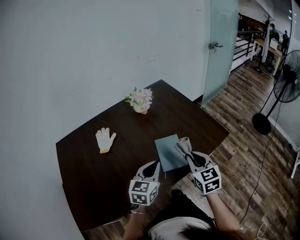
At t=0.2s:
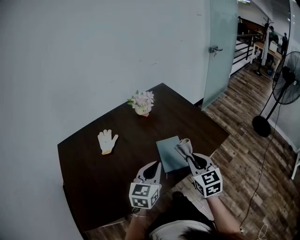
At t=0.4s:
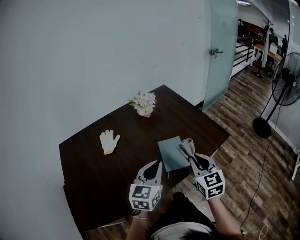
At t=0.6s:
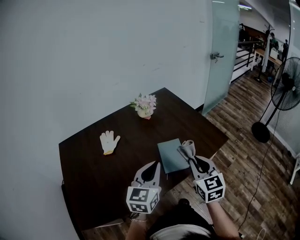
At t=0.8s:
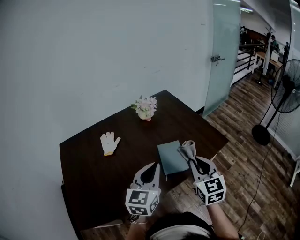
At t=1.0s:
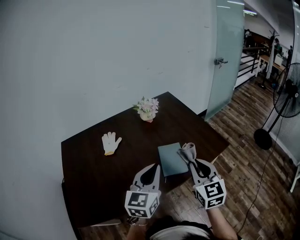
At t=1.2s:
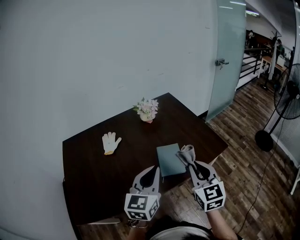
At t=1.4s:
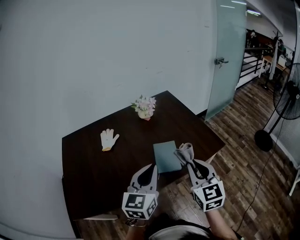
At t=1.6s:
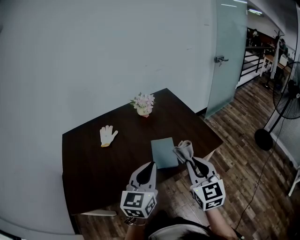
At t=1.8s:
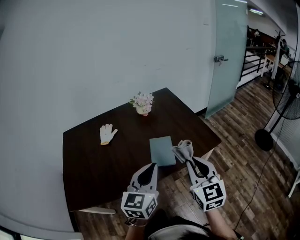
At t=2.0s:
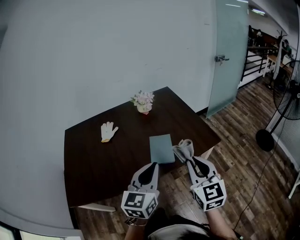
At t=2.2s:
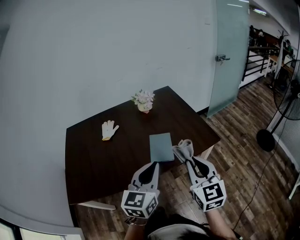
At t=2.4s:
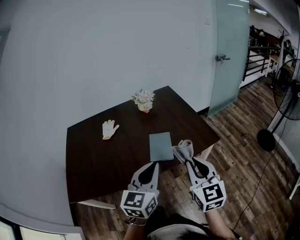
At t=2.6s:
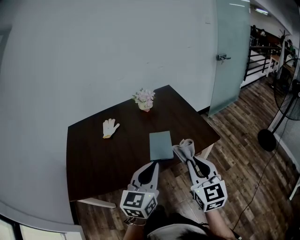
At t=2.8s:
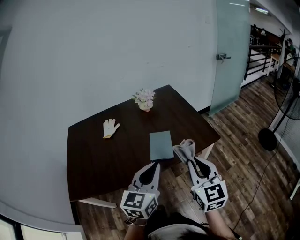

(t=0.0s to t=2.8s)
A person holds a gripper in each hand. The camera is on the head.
t=0.0s - t=1.4s: The two grippers go about 15 cm upward and backward.
t=1.4s - t=2.8s: Both grippers travel together backward and to the right, about 15 cm.

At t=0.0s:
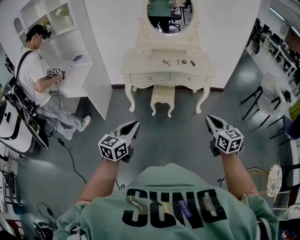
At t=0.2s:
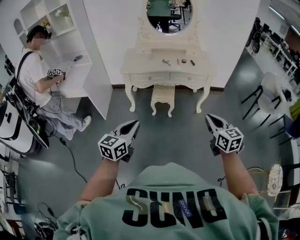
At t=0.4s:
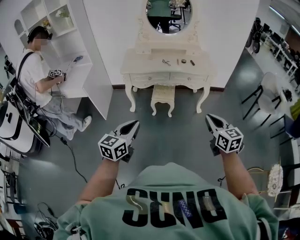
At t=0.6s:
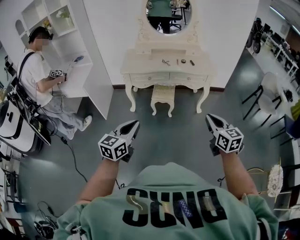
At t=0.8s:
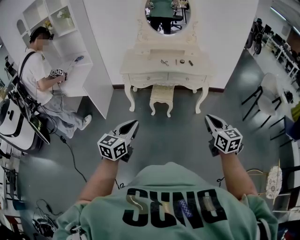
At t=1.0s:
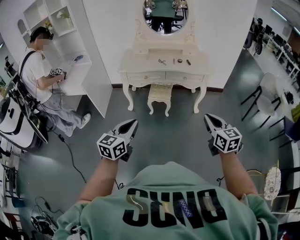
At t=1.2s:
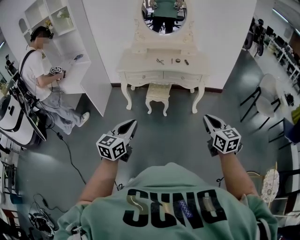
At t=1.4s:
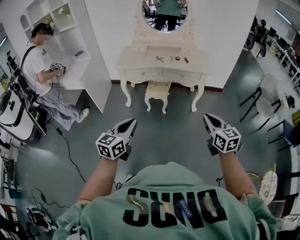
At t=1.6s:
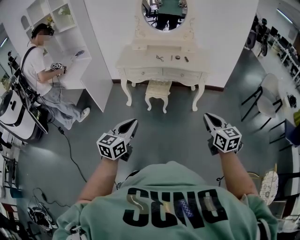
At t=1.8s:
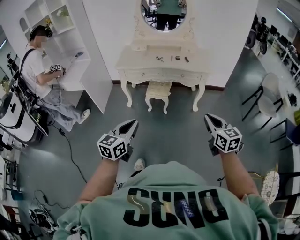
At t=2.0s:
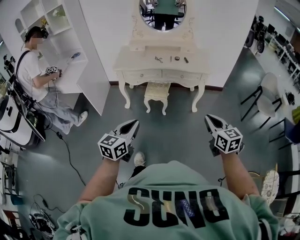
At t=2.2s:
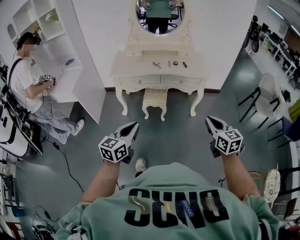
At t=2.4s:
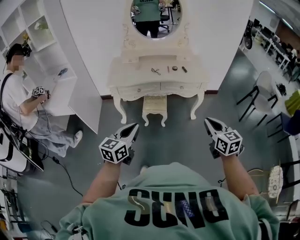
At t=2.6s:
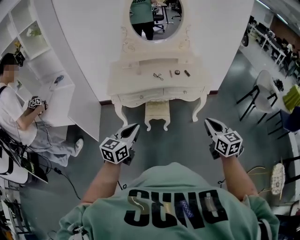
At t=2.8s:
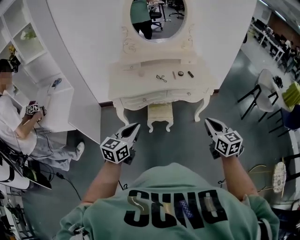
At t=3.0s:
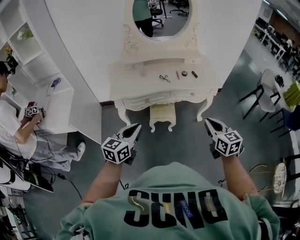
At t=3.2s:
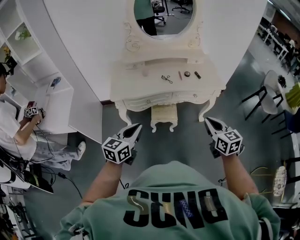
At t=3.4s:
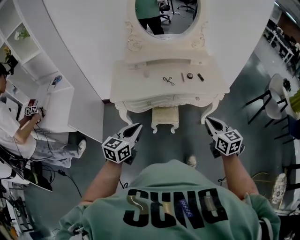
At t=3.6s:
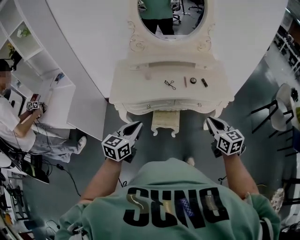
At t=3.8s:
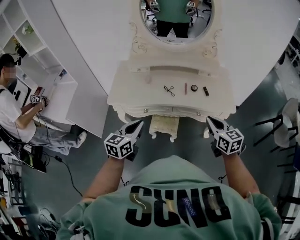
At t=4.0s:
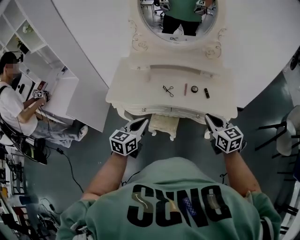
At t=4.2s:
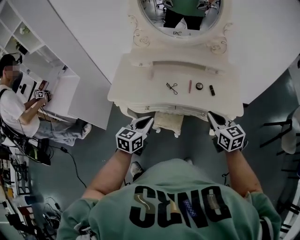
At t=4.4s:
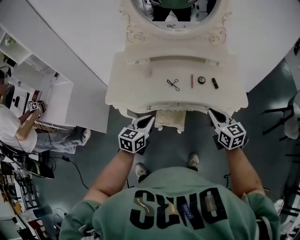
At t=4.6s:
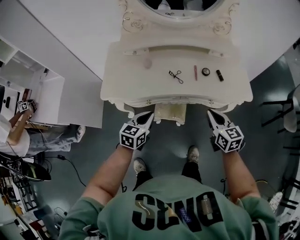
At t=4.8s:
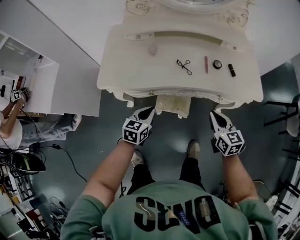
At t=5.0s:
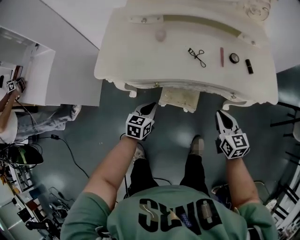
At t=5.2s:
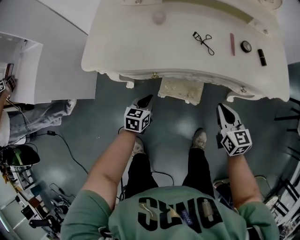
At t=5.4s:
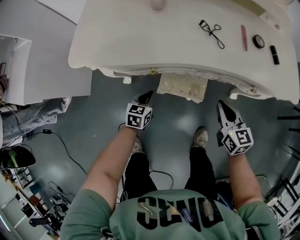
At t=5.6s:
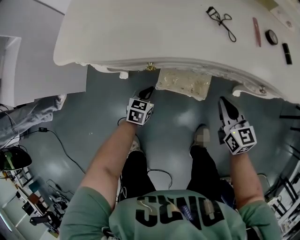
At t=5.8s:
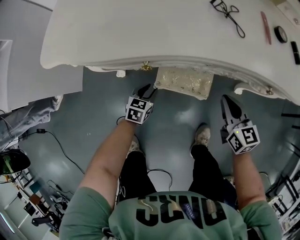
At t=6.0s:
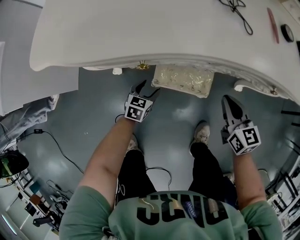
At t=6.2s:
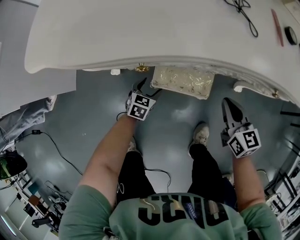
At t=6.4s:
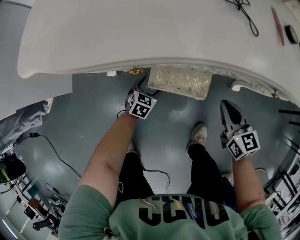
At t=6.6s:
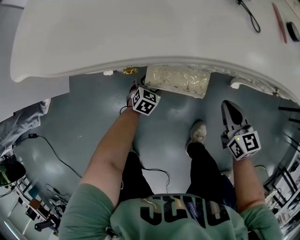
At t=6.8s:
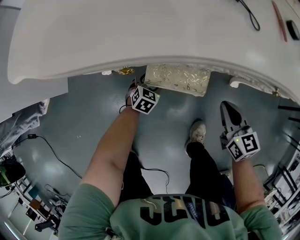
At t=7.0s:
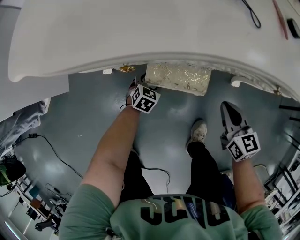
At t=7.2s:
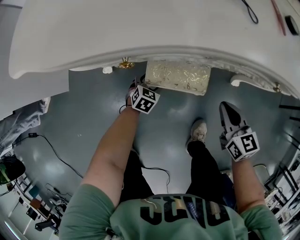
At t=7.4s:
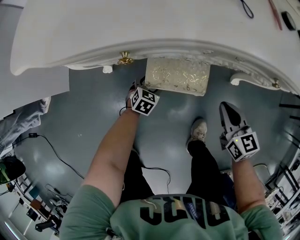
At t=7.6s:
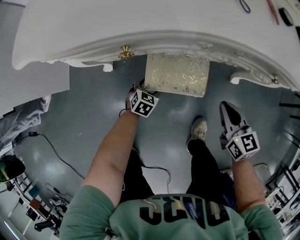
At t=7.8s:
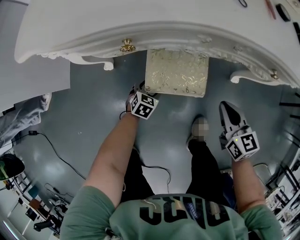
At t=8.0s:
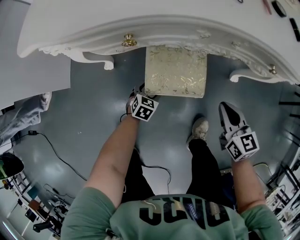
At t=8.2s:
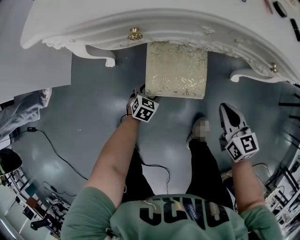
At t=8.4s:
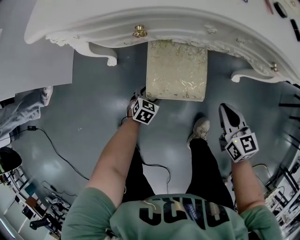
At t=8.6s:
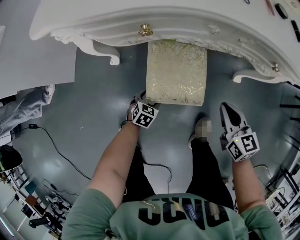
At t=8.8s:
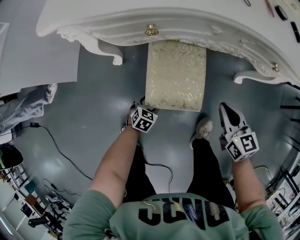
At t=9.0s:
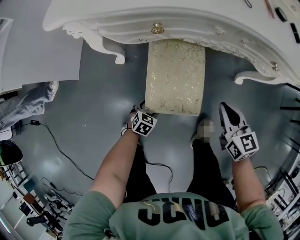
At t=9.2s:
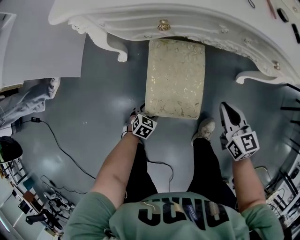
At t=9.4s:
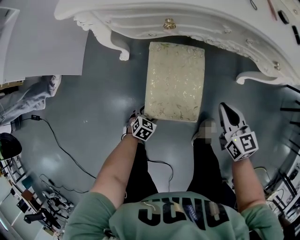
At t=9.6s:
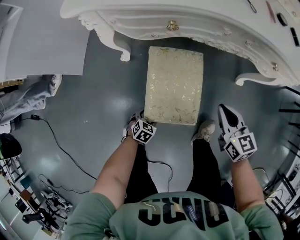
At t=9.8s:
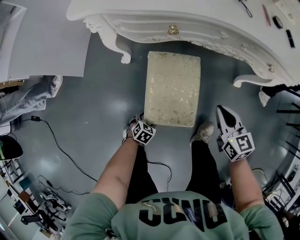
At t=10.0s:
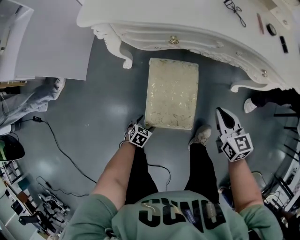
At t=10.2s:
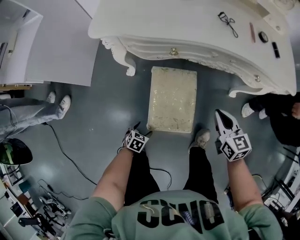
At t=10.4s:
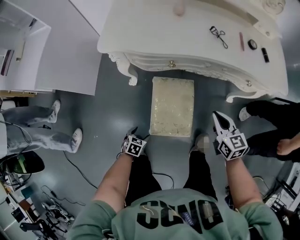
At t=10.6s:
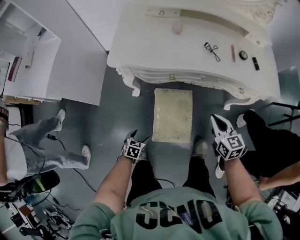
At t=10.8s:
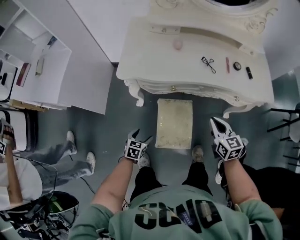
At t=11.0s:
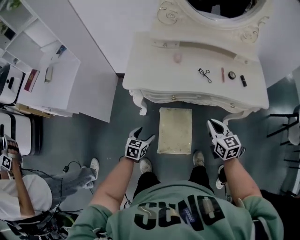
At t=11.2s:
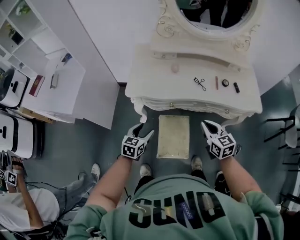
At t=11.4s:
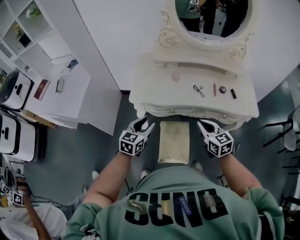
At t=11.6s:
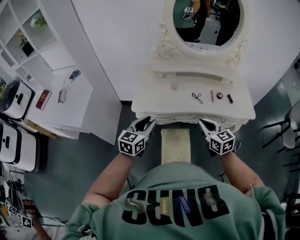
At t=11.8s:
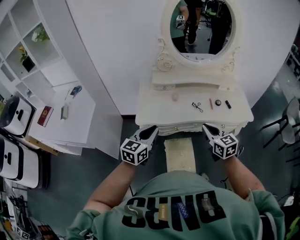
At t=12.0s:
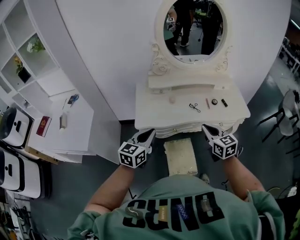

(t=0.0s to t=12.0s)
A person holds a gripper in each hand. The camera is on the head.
t=0.0s - t=1.6s: The grippers both shift to the right by about 15 cm.
t=1.6s - t=3.0s: The grippers both shift forward and to the left by about 40 cm.
t=3.0s - t=4.4s: The right gripper heads forward, covering approximately 30 cm, while the left gripper moves forward, downward and to the right, approximately 30 cm.
t=4.4s - t=6.0s: Both grippers travel together downward, about 50 cm. The left gripper swivels roughly 20 degrees, and opens up.
t=6.0s - t=7.6s: The left gripper heads downward, covering about 5 cm, while the right gripper moves backward, roughly 5 cm.
t=7.6s - t=9.0s: The left gripper travels backward by roughly 20 cm. Meanwhile the right gripper moves backward, about 5 cm.
t=9.0s - t=10.4s: The right gripper goes some 10 cm upward; the left gripper travels upward, backward and to the left by approximately 20 cm.
t=10.4s - t=12.0s: The right gripper shifts about 35 cm upward; the left gripper shifts about 70 cm upward, tilts its fingers approximately 50 degrees upward, and closes up.

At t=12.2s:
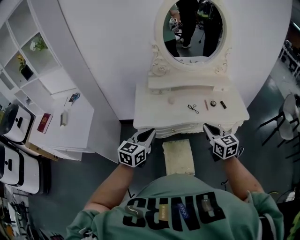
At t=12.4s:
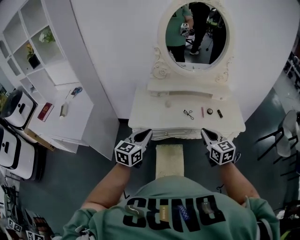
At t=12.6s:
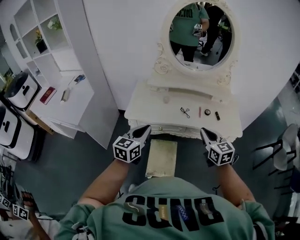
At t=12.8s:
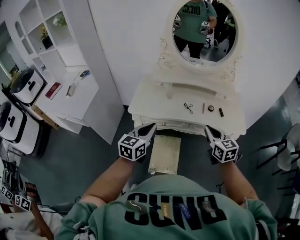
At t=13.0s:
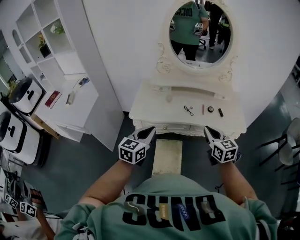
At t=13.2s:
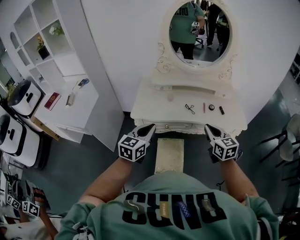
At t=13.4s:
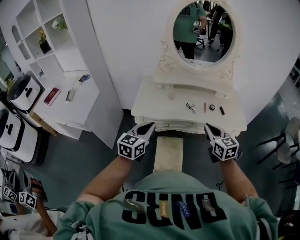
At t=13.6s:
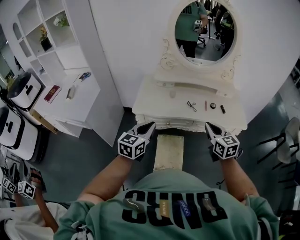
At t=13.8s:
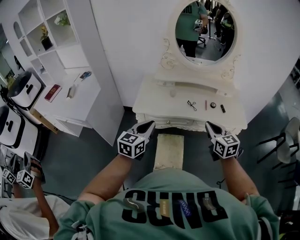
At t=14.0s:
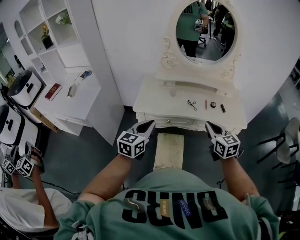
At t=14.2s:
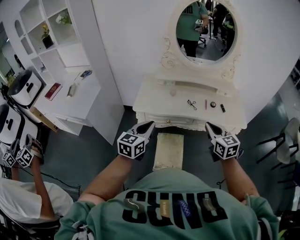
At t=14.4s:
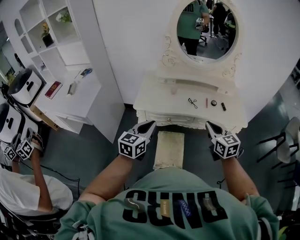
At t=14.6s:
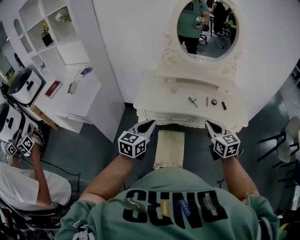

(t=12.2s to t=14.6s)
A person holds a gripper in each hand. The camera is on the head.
t=12.2s - t=13.4s: Both grippers travel together to the right, roughly 5 cm.
t=13.4s - t=14.6s: The grippers stay close to where they were, moving slightly.

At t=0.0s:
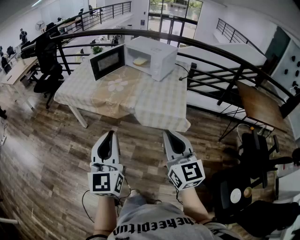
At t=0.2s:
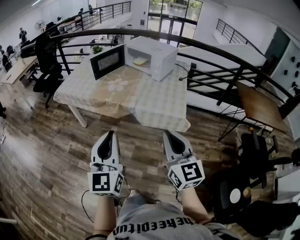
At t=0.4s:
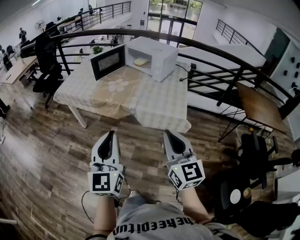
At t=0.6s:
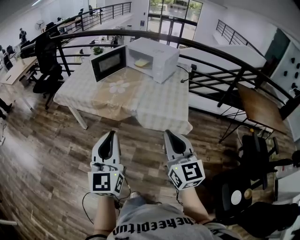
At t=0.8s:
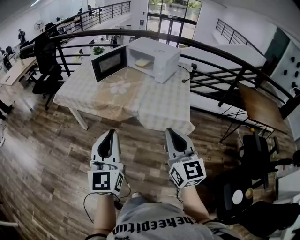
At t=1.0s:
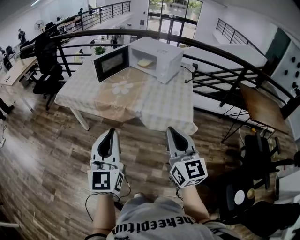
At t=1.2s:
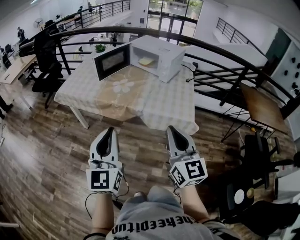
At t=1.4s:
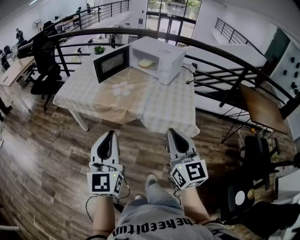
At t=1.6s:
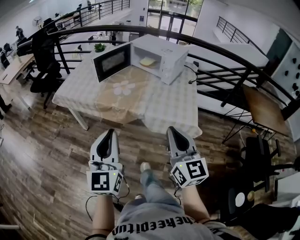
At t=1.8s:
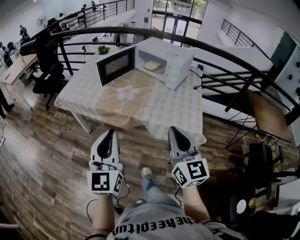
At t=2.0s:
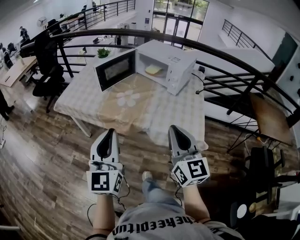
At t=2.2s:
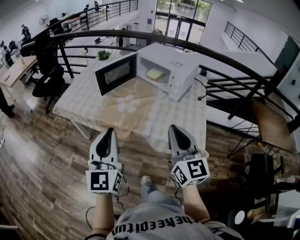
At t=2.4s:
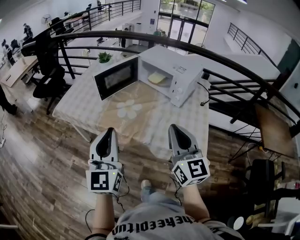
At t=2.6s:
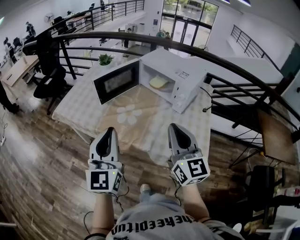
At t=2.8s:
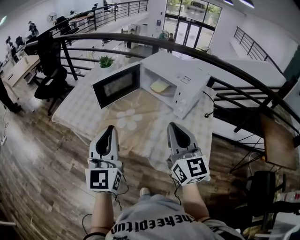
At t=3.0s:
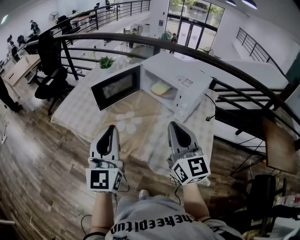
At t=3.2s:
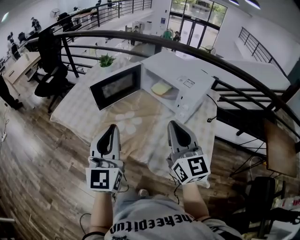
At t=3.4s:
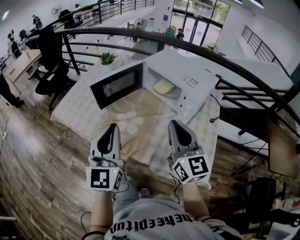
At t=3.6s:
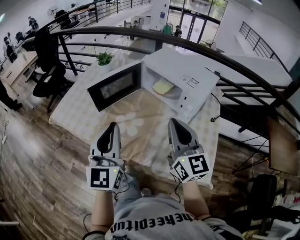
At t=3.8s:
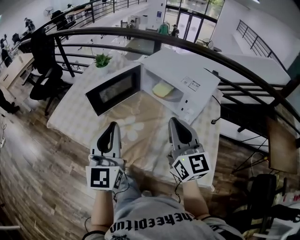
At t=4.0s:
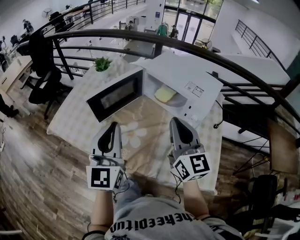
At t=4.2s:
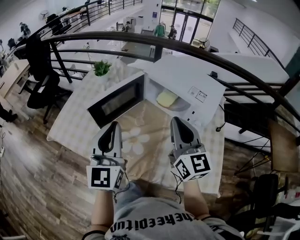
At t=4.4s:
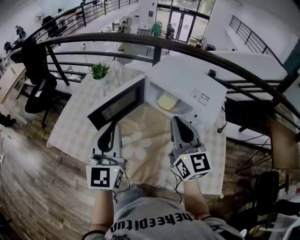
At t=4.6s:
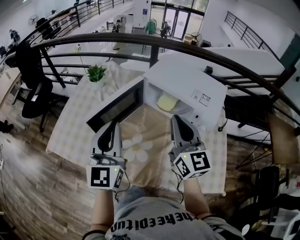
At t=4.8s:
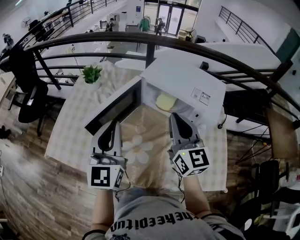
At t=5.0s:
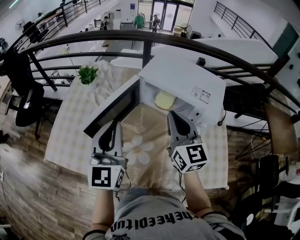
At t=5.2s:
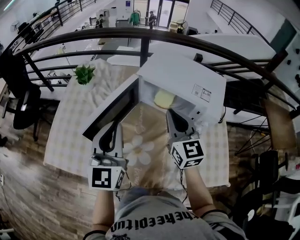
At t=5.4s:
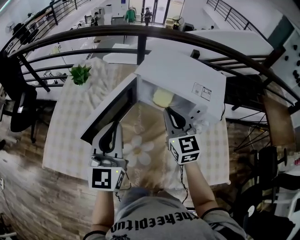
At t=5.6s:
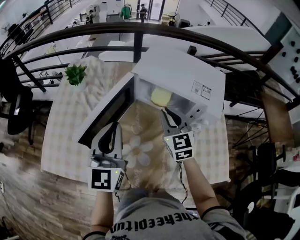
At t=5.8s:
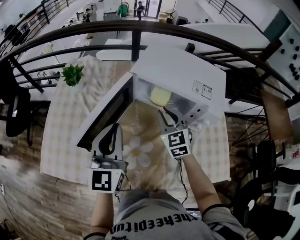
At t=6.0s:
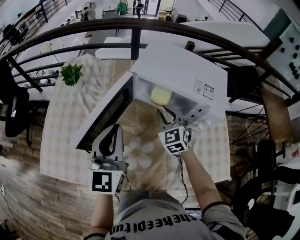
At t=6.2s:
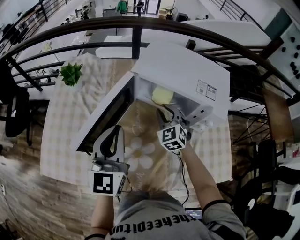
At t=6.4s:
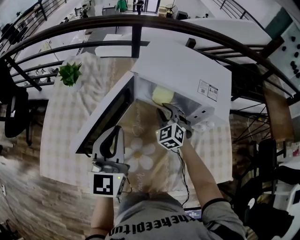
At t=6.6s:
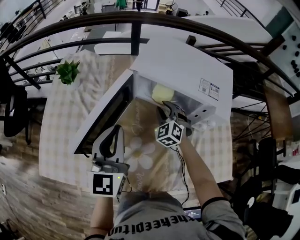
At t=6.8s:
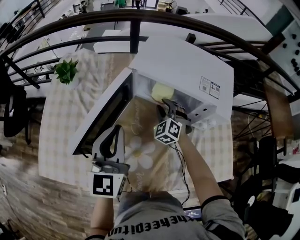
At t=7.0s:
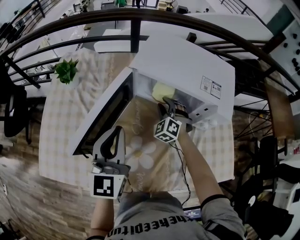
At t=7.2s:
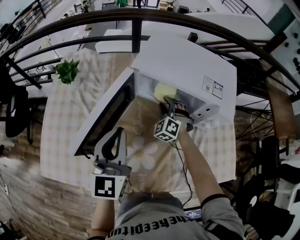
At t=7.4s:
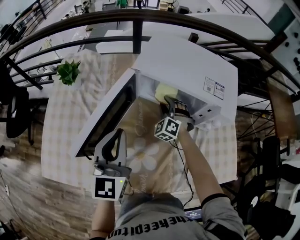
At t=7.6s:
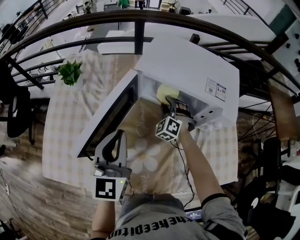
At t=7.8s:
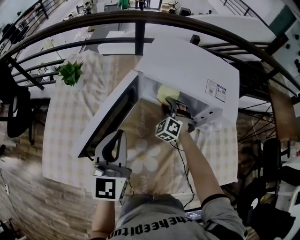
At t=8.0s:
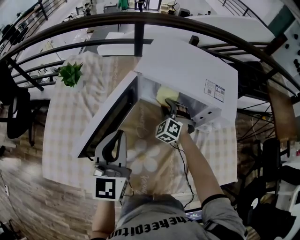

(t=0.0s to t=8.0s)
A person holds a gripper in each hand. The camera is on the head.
t=0.0s - t=1.6s: Both grippers move forward and to the left, approximately 15 cm.
t=1.6s - t=3.2s: The two grippers go approximately 35 cm forward.
t=3.2s - t=4.8s: Both grippers travel together forward, about 25 cm.
t=4.8s - t=6.4s: The left gripper shifts about 15 cm downward and forward, while the right gripper travels downward and forward by some 30 cm, angles its fingers downward, by approximately 30 degrees, and opens up.
t=6.4s - t=8.0s: The right gripper ends up about 5 cm from where it was.
